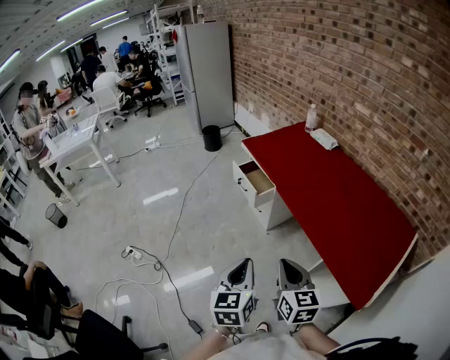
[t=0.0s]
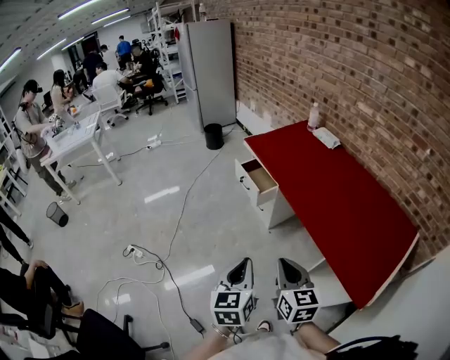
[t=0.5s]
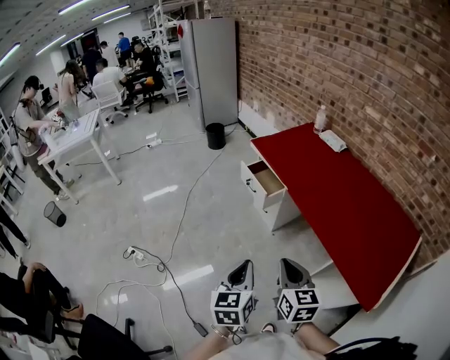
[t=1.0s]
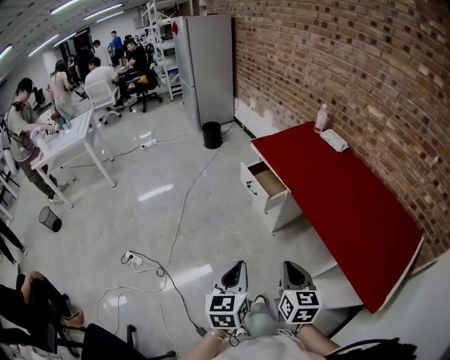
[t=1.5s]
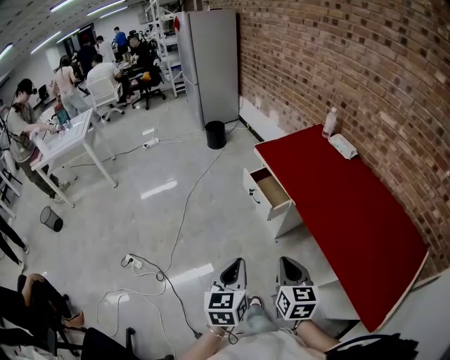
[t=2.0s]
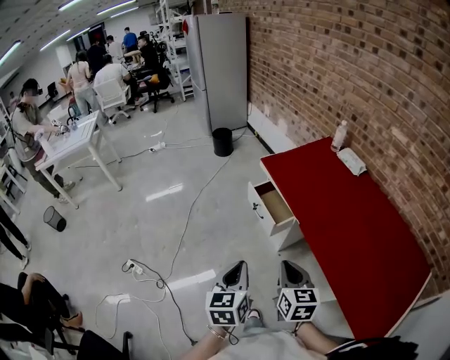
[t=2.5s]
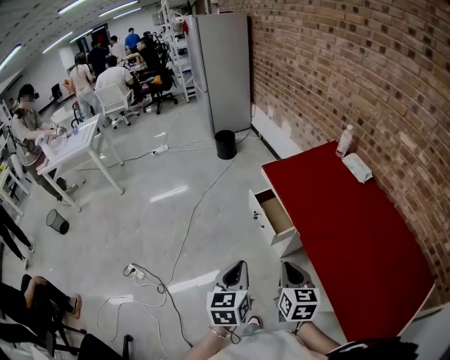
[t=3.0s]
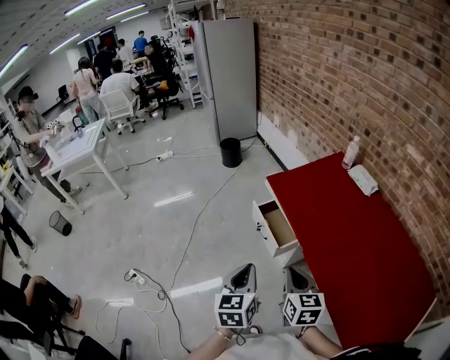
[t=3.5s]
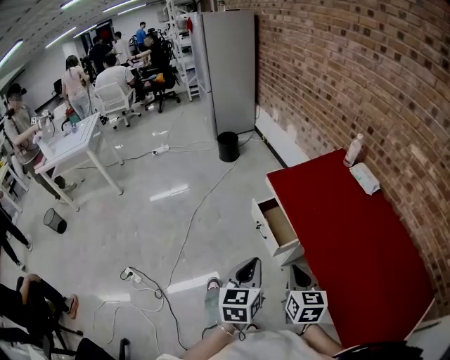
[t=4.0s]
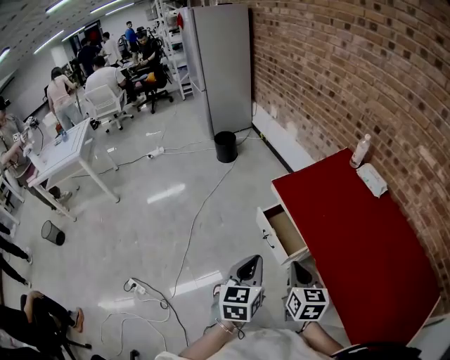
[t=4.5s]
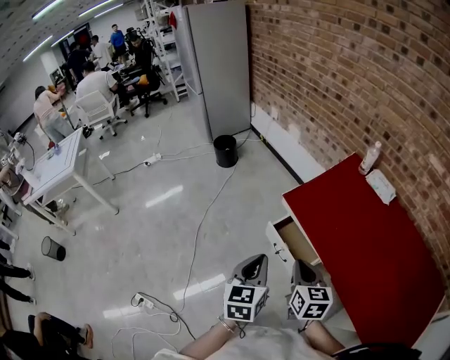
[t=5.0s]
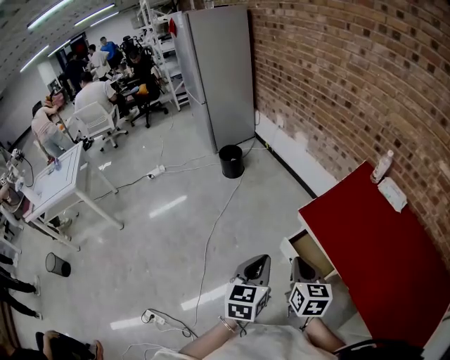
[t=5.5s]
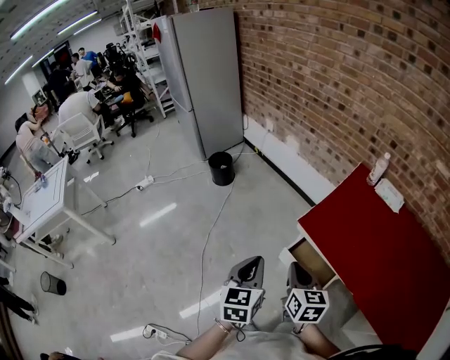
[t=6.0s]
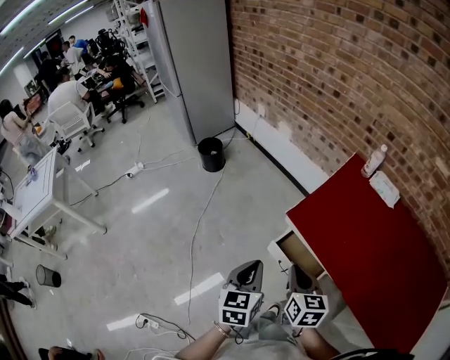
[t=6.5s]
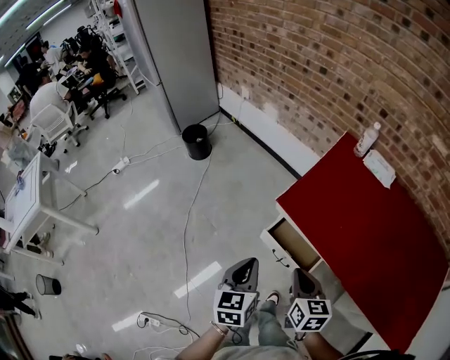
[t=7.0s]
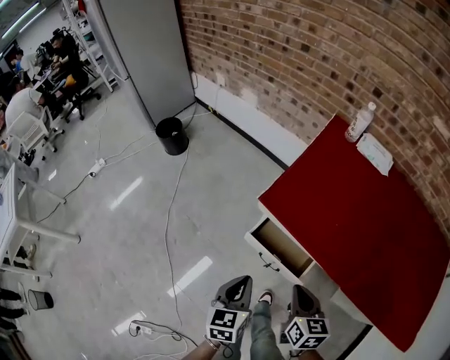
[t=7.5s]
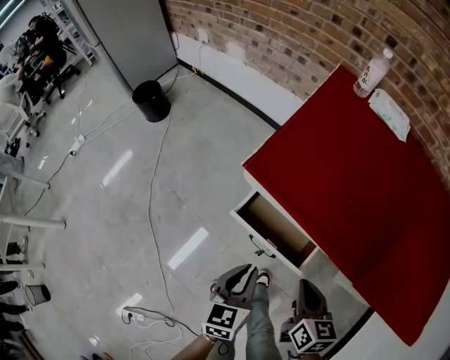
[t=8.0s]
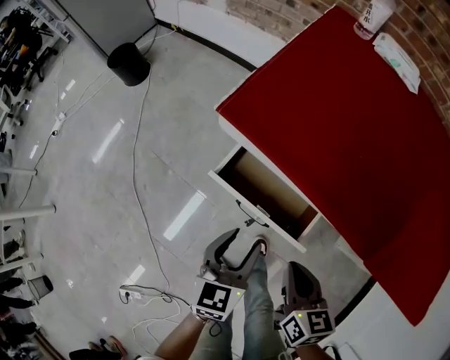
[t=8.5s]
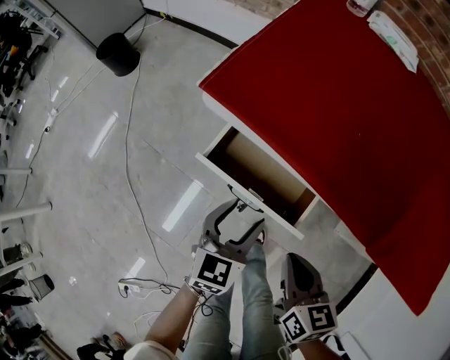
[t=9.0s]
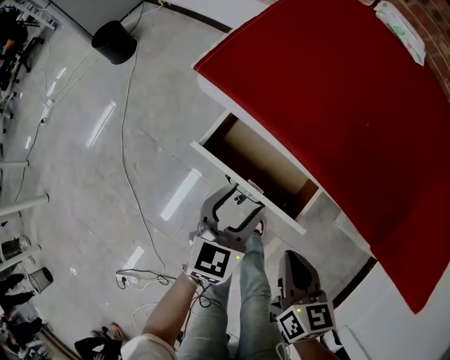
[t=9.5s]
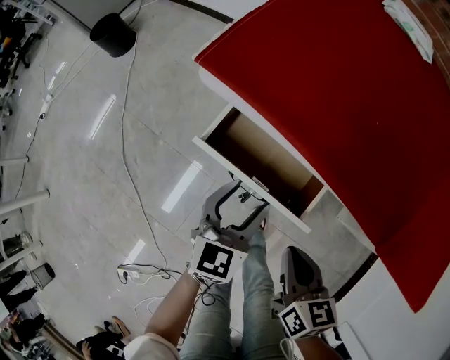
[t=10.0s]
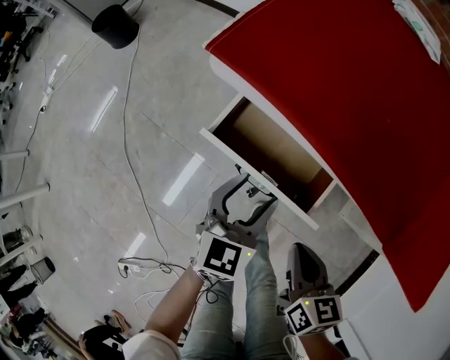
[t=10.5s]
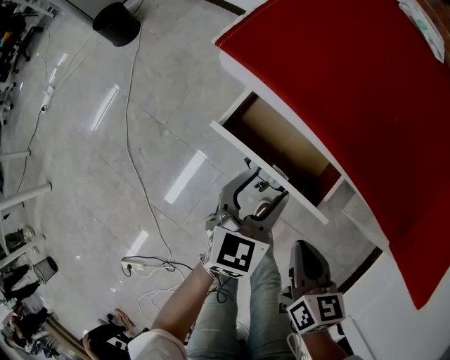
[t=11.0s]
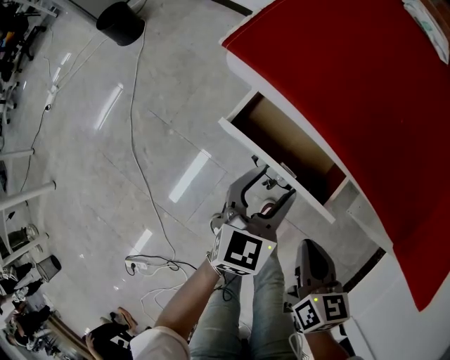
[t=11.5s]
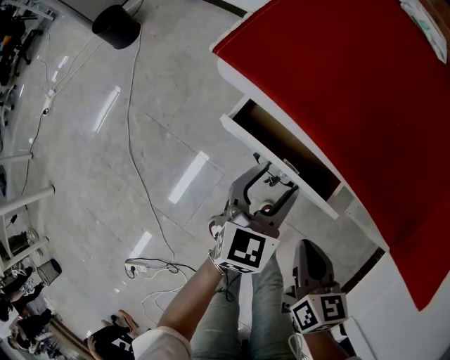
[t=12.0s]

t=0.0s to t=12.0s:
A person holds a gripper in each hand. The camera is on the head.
t=0.0s to t=2.0s: Both grippers travel together forward and to the left, about 20 cm.
t=2.0s to t=4.0s: The two grippers go roughly 20 cm forward.
t=4.0s to t=6.0s: Both grippers travel together forward and to the left, approximately 35 cm.
t=6.0s to t=8.0s: Both grippers travel together downward and to the right, roughly 30 cm. The right gripper changes its angle by about 20 degrees. The left gripper swivels roughly 20 degrees.
t=8.0s to t=10.0s: The right gripper moves downward, about 5 cm, while the left gripper heads downward and forward, covering roughly 10 cm, rotates about 20 degrees, and opens up.
t=10.0s to t=12.0s: The grippers stay close to where they were, moving slightly.

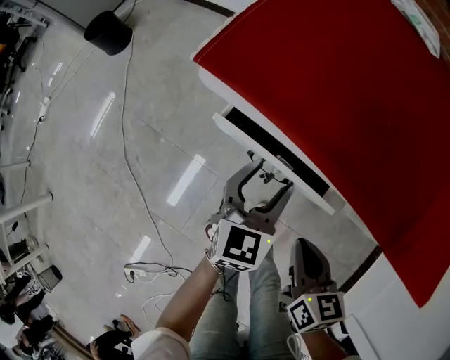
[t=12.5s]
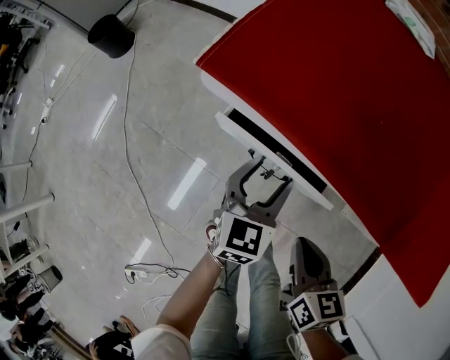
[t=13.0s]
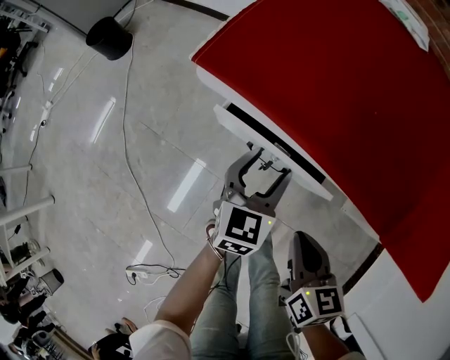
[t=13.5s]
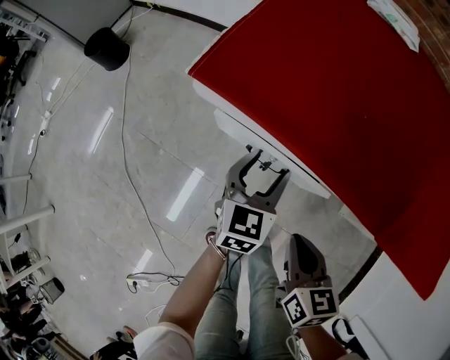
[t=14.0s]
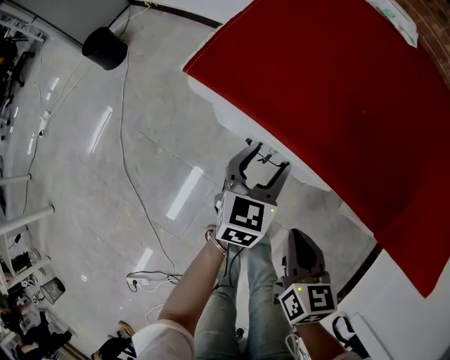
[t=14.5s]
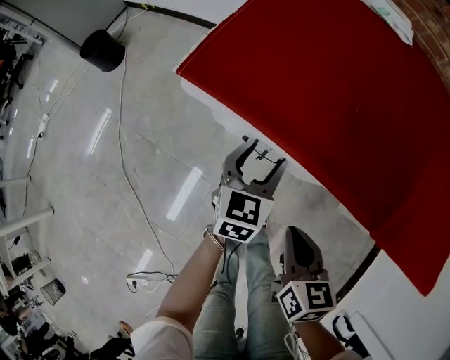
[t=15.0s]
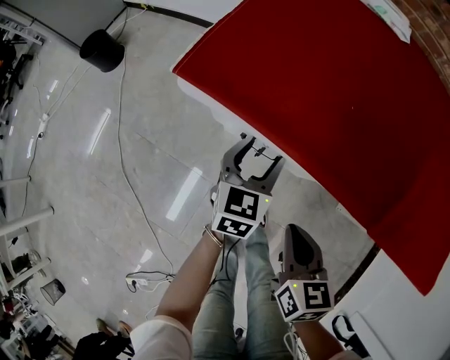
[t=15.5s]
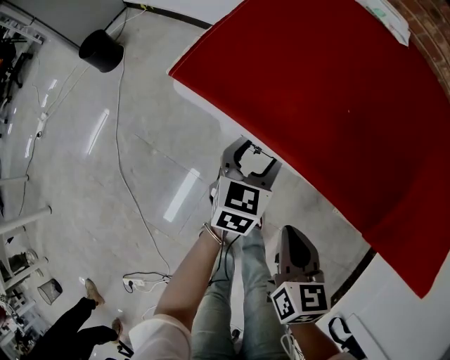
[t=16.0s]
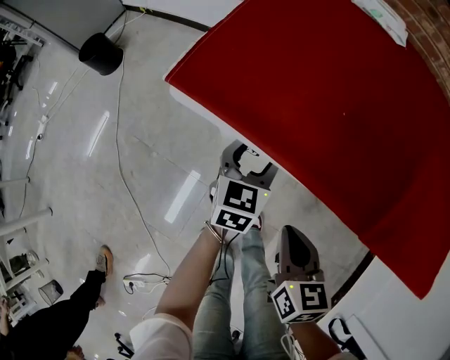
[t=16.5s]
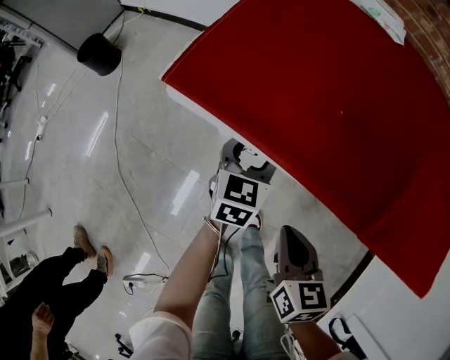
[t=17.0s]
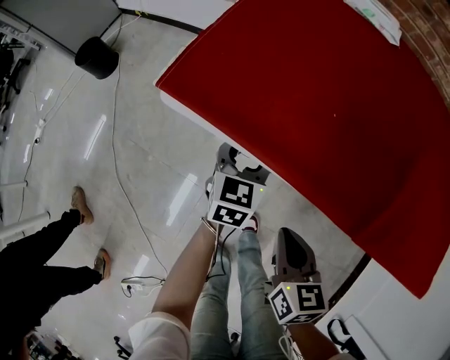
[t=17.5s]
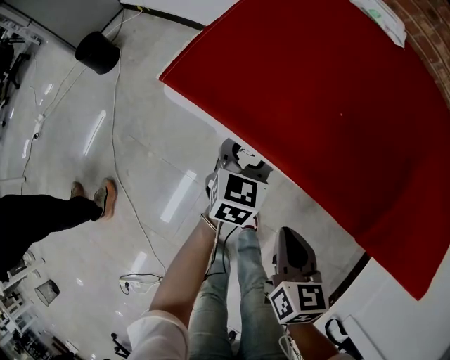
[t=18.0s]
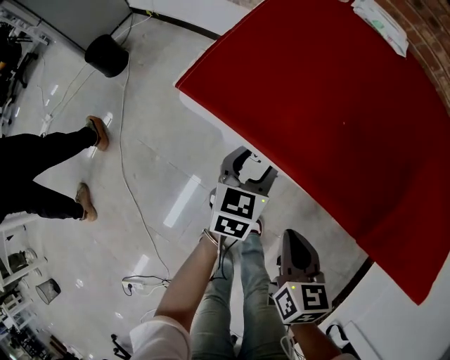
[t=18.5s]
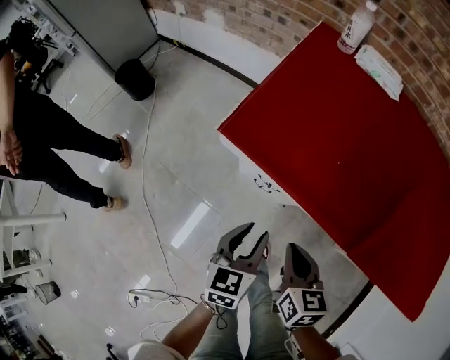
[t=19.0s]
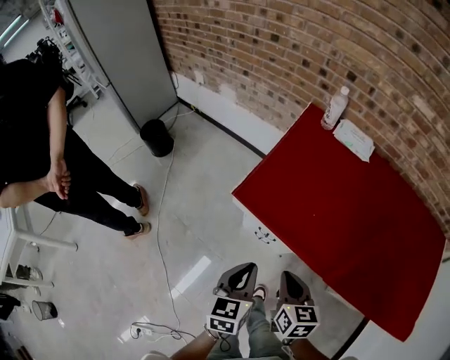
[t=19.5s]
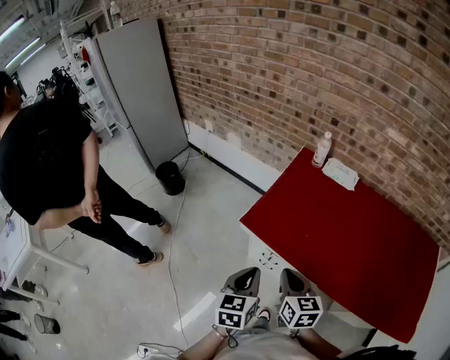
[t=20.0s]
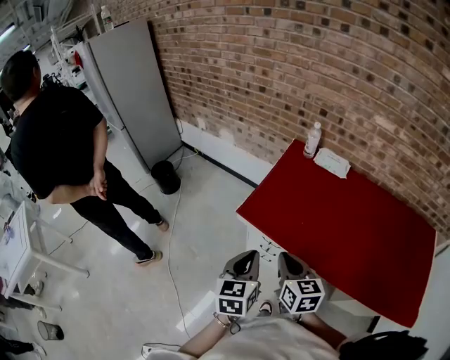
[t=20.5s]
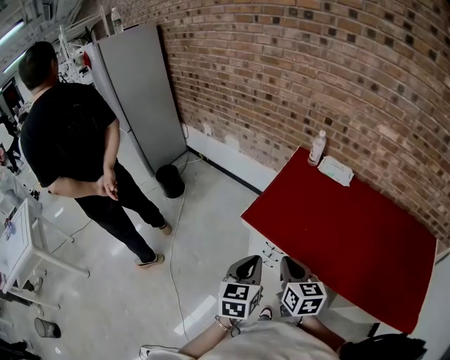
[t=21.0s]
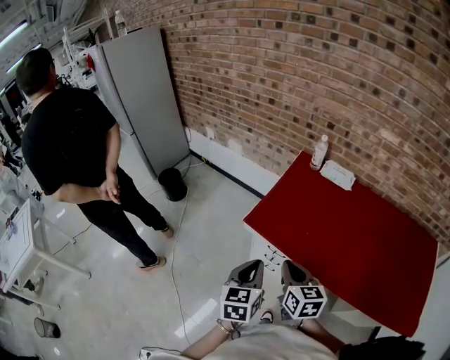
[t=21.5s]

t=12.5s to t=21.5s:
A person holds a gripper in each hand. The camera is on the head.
t=12.5s to t=14.5s: There are only small adjustments of the grippers.
t=14.5s to t=17.0s: The grippers stay close to where they were, moving slightly.
t=17.0s to t=19.5s: The right gripper shifts roughly 15 cm upward. Meanwhile the left gripper shifts approximately 30 cm upward and backward, and closes.
t=19.5s to t=21.5s: Both grippers travel together upward, roughly 15 cm.

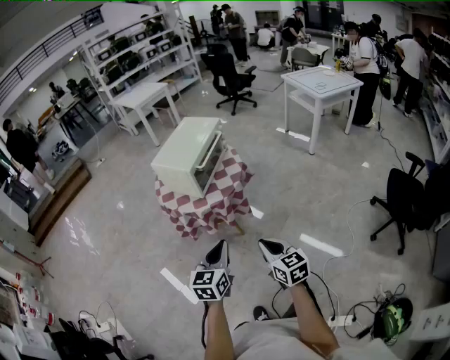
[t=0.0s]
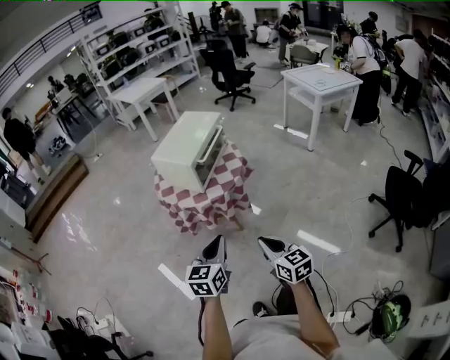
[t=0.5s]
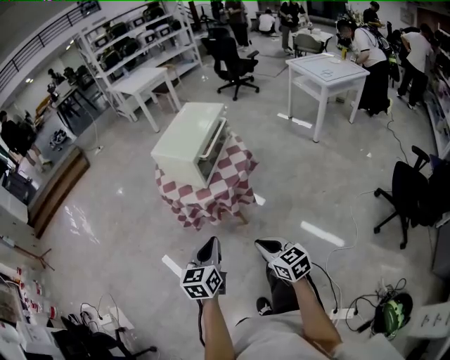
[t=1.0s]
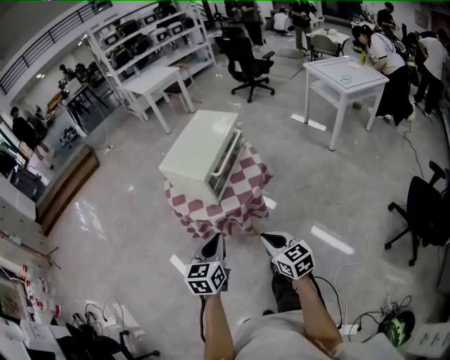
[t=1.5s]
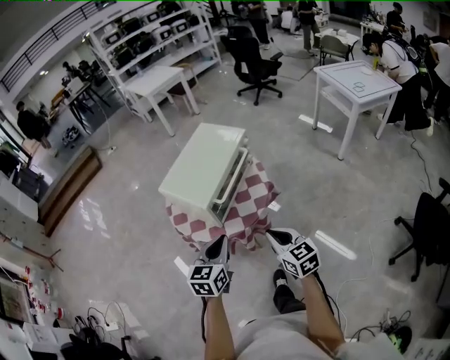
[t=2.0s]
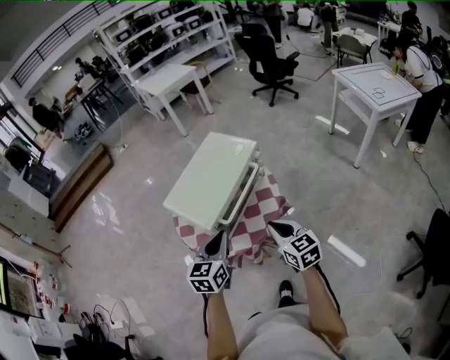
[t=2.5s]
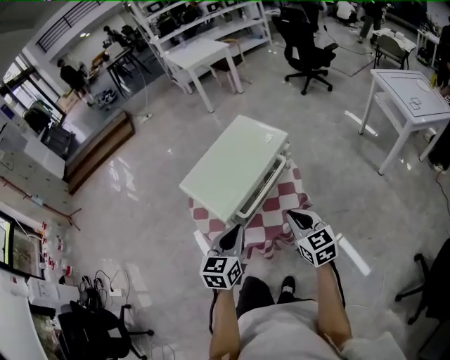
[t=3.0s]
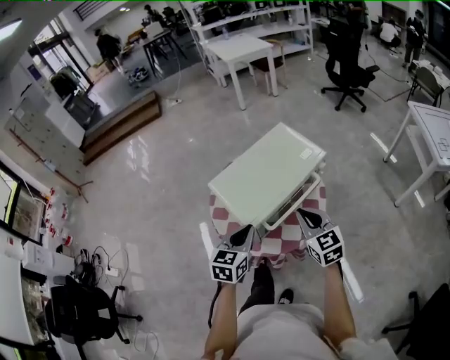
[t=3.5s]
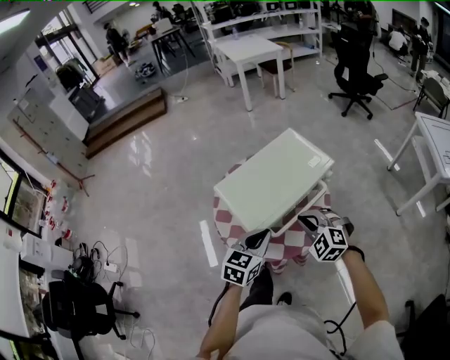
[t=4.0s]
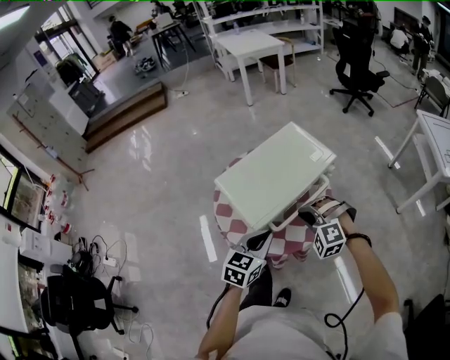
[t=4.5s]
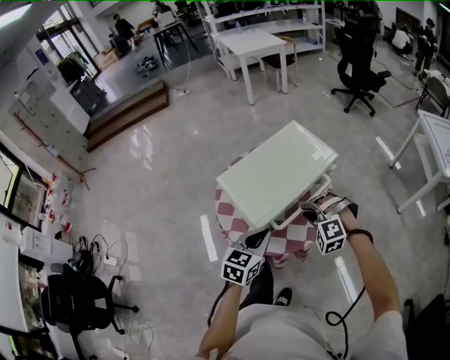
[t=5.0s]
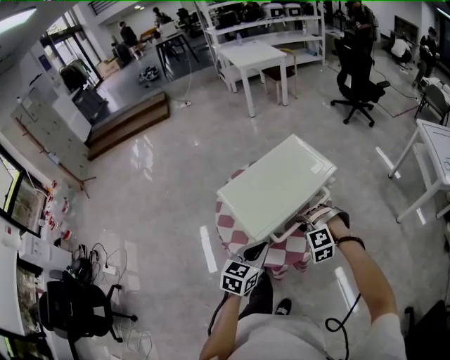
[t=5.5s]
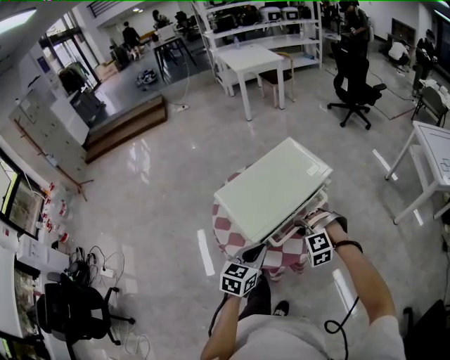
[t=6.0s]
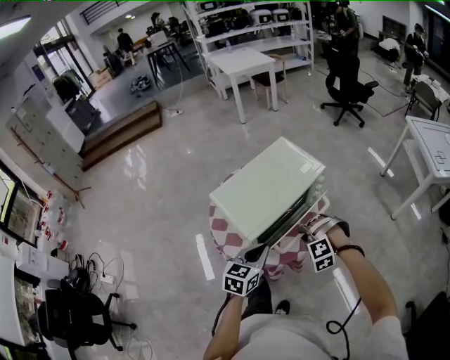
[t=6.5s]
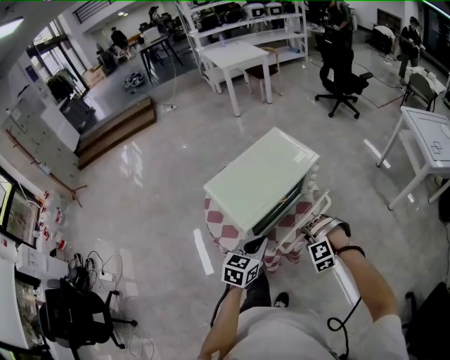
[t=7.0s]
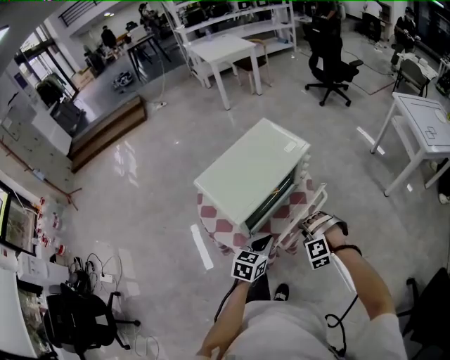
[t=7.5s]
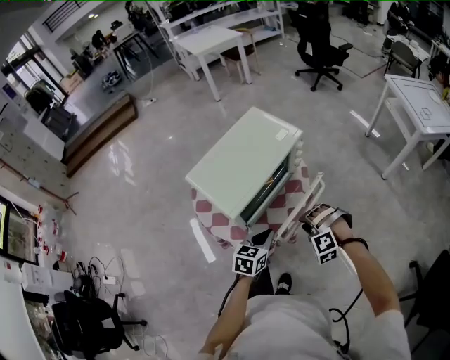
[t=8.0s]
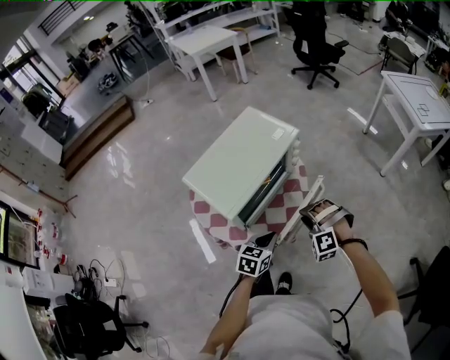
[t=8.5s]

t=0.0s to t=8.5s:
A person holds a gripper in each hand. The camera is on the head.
t=0.0s to t=2.0s: The grippers both shift forward by roughly 25 cm.
t=2.0s to t=4.0s: The grippers both shift forward by approximately 20 cm. The right gripper rolls counterclockwise, seen from behind, by some 60 degrees.
t=4.0s to t=6.5s: The right gripper goes about 10 cm downward, changes its angle by some 40 degrees, and opens its fingers.
t=6.5s to t=8.5s: The left gripper goes roughly 15 cm downward and to the right, while the right gripper shifts some 5 cm to the right.
